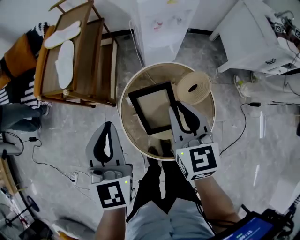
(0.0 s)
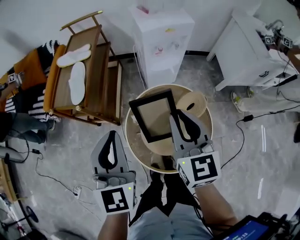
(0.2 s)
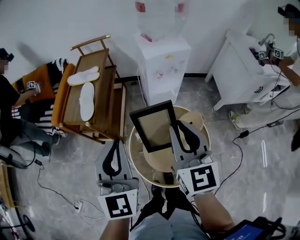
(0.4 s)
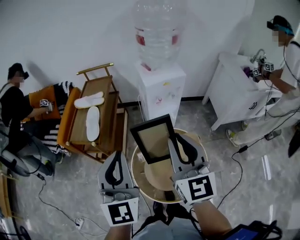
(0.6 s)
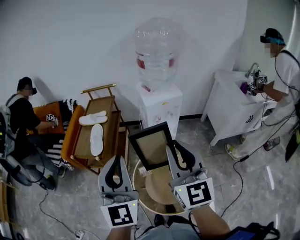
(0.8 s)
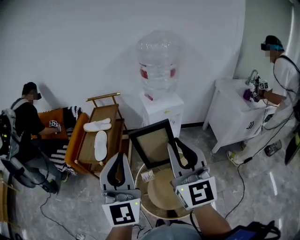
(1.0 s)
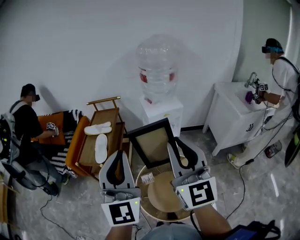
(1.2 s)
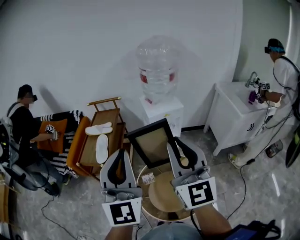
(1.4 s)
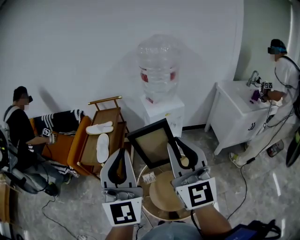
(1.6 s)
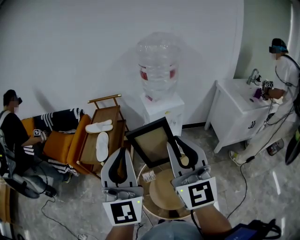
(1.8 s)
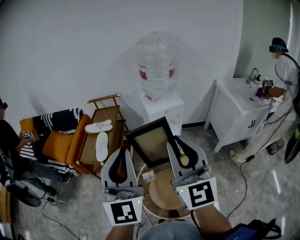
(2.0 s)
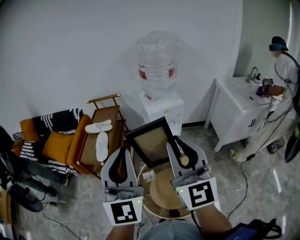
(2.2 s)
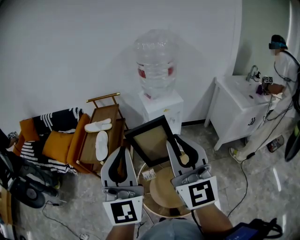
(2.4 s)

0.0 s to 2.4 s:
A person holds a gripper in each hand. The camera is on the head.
0.0 to 1.2 s: The grippers both shift upward by about 35 cm. The left gripper angles its fingers upward, by approximately 30 degrees; the right gripper angles its fingers upward, by roughly 40 degrees.
1.2 to 2.4 s: The grippers make only small movements.

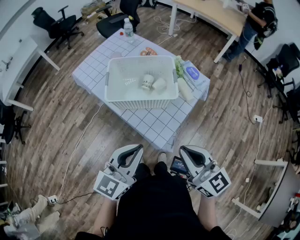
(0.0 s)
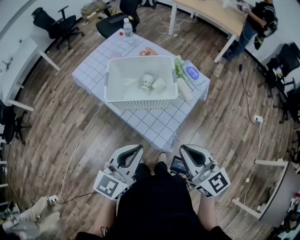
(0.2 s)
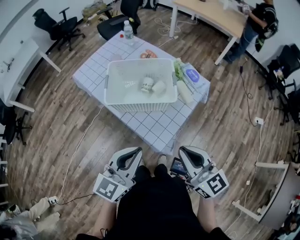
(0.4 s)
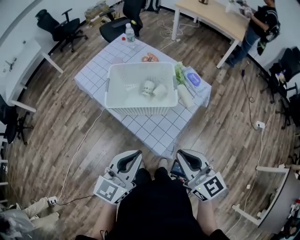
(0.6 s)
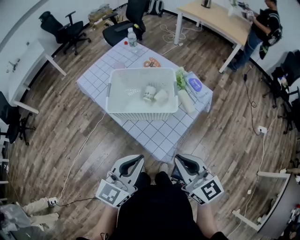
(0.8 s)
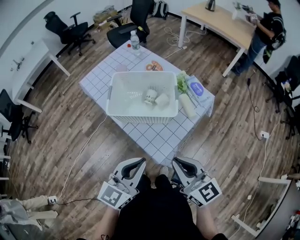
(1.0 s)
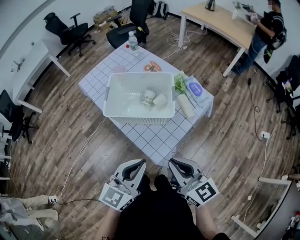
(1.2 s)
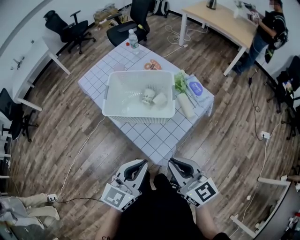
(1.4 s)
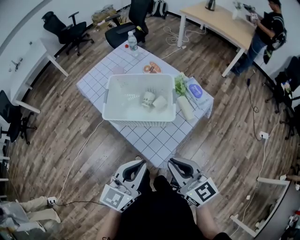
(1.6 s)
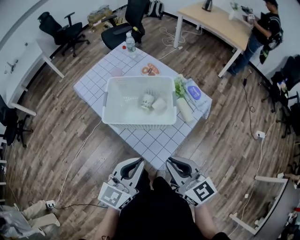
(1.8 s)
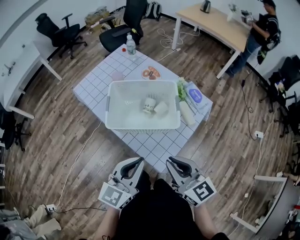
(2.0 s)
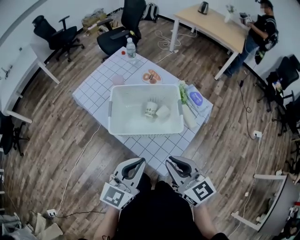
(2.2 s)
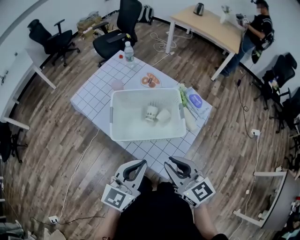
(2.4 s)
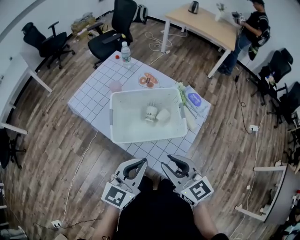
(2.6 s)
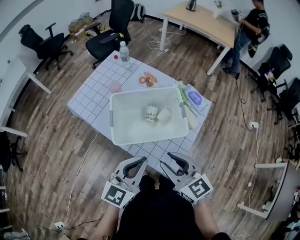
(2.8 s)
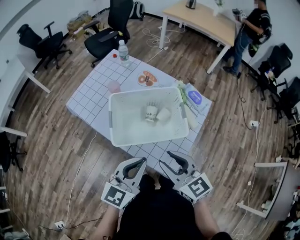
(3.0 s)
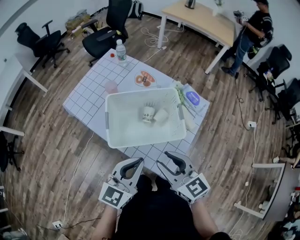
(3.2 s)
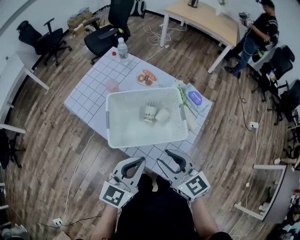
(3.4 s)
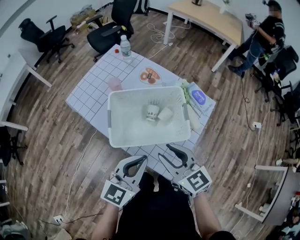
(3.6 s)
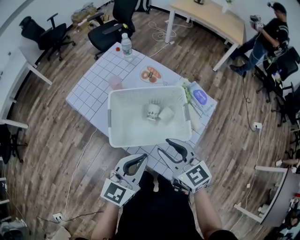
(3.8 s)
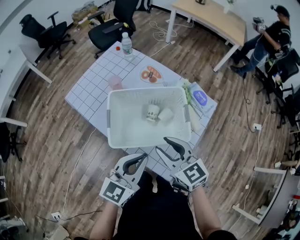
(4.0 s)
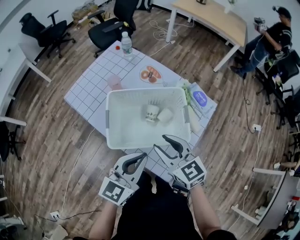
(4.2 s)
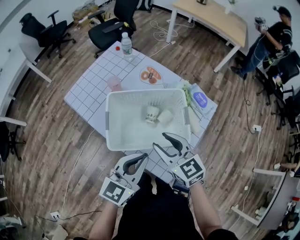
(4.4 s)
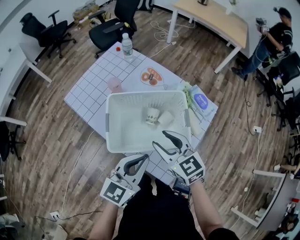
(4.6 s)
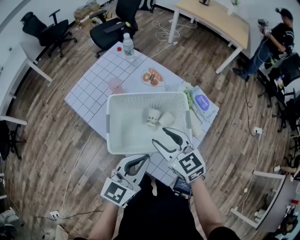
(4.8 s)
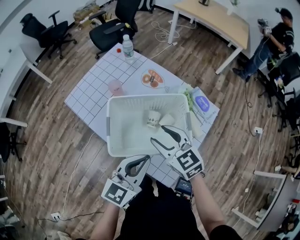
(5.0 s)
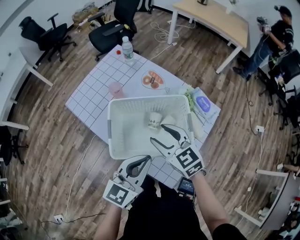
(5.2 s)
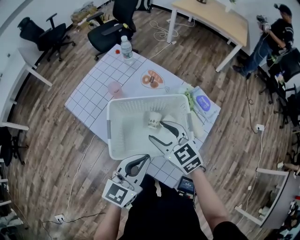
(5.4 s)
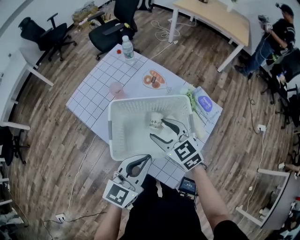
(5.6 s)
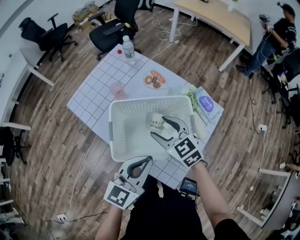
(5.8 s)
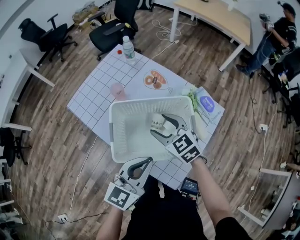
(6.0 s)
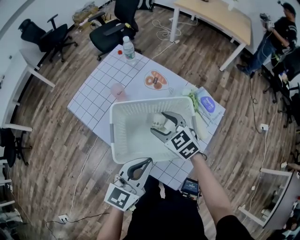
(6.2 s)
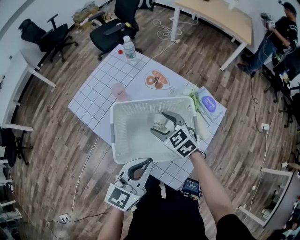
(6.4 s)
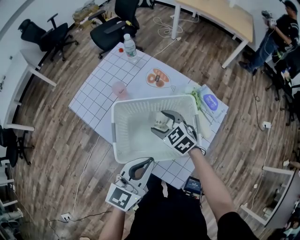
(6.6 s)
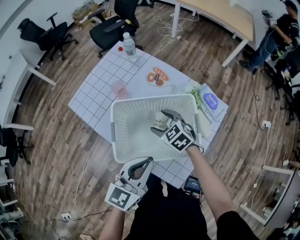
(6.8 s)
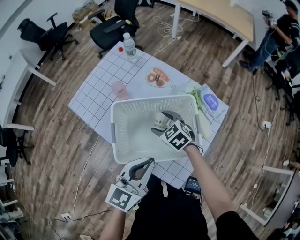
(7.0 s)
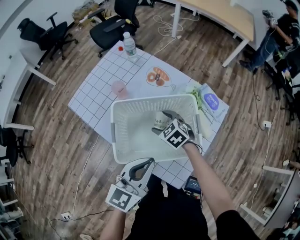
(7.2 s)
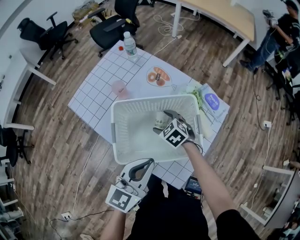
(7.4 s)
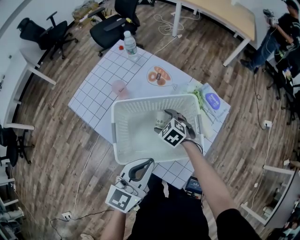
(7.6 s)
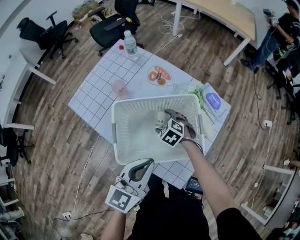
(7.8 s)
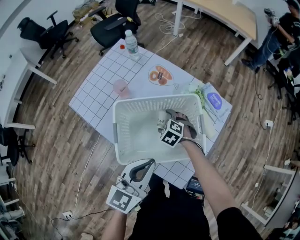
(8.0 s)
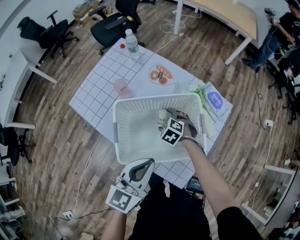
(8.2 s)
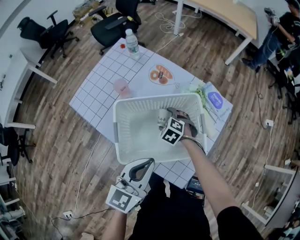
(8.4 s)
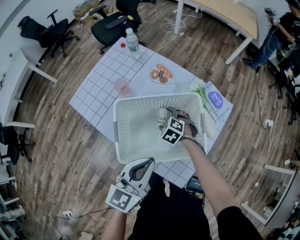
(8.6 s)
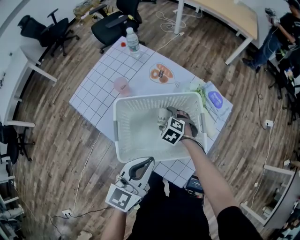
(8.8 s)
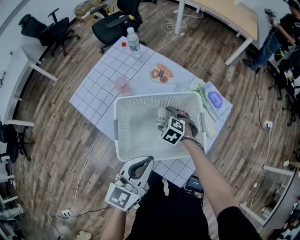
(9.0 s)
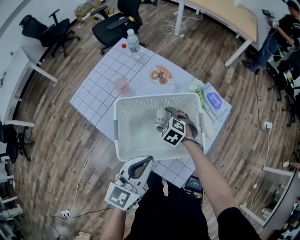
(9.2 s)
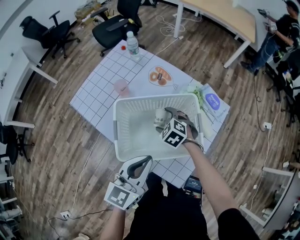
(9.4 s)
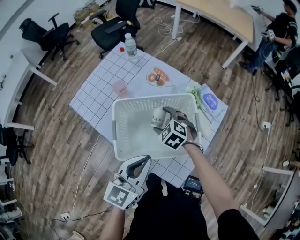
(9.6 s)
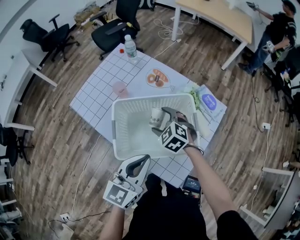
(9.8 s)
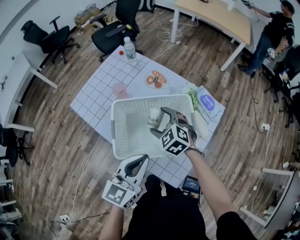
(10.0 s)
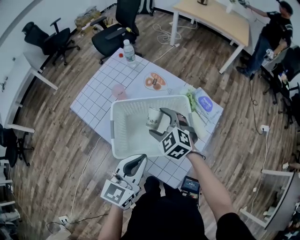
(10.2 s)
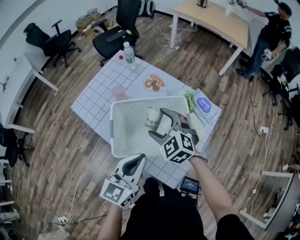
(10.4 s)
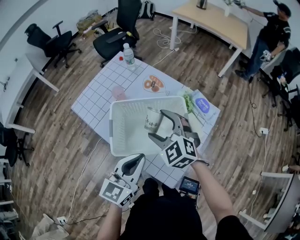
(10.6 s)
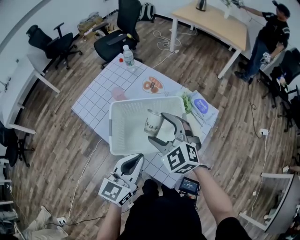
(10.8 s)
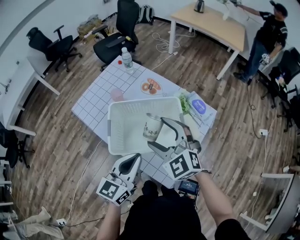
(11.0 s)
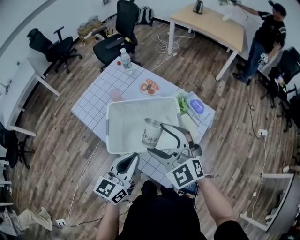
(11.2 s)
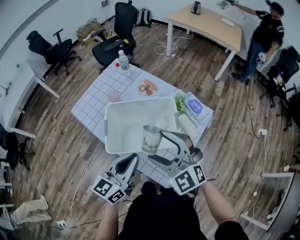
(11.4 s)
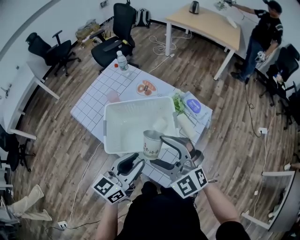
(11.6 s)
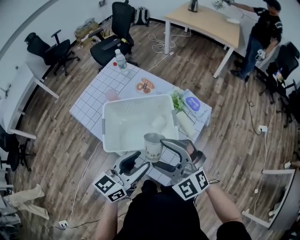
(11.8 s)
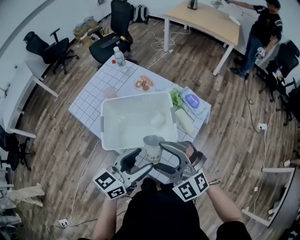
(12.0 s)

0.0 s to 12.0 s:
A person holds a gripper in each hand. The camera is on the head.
0.0 to 1.6 s: The left gripper changes place by roughly 5 cm; the right gripper ends up about 5 cm from where it was.
1.6 to 3.0 s: The left gripper heads forward and to the left, covering roughly 15 cm. Meanwhile the right gripper is displaced to the left and forward by roughly 15 cm.
3.0 to 4.4 s: The left gripper moves about 5 cm, while the right gripper is displaced forward by about 10 cm.
4.4 to 6.0 s: The right gripper shifts roughly 10 cm forward.
6.0 to 7.6 s: The right gripper moves downward, some 15 cm, and changes its angle by about 30 degrees.
7.6 to 9.0 s: The grippers stay close to where they were, moving slightly.
9.0 to 10.4 s: The right gripper moves upward, roughly 20 cm, and turns by approximately 30 degrees.
10.4 to 12.0 s: The right gripper travels backward by some 20 cm, and swivels about 30 degrees, while the left gripper heads to the right, covering about 5 cm, and opens its fingers.

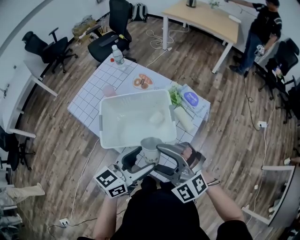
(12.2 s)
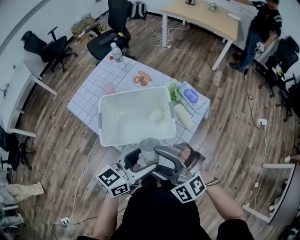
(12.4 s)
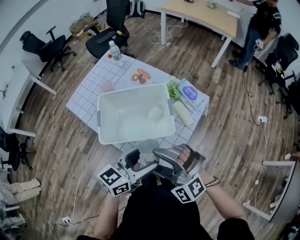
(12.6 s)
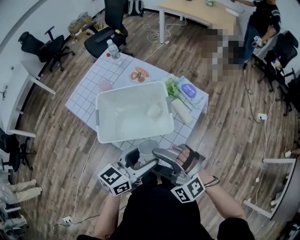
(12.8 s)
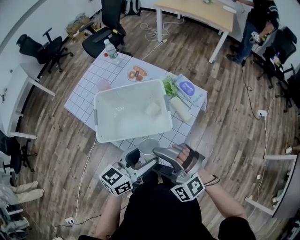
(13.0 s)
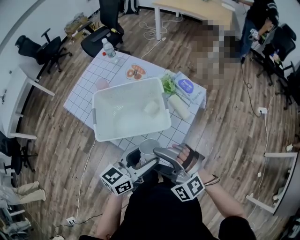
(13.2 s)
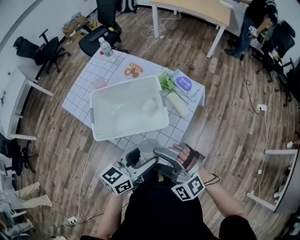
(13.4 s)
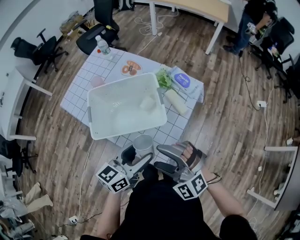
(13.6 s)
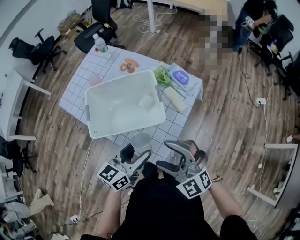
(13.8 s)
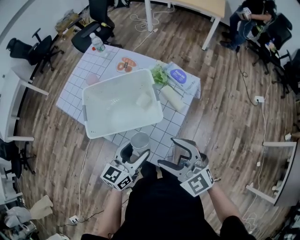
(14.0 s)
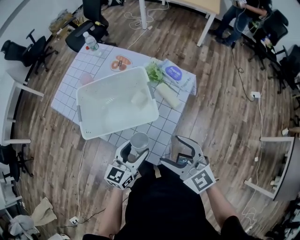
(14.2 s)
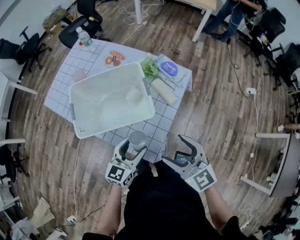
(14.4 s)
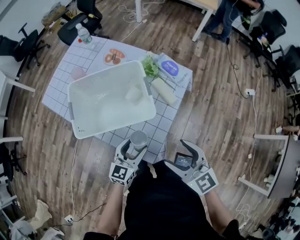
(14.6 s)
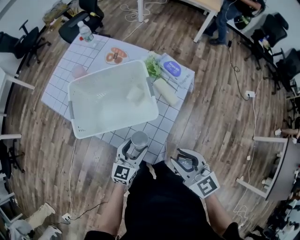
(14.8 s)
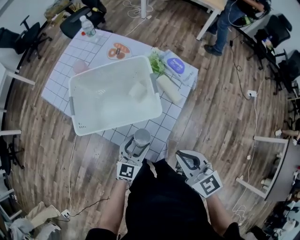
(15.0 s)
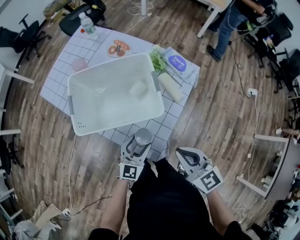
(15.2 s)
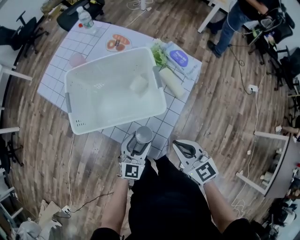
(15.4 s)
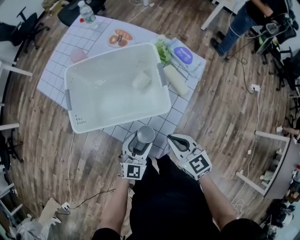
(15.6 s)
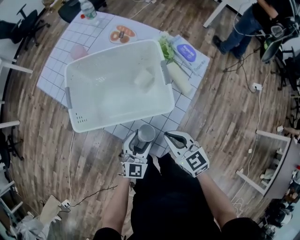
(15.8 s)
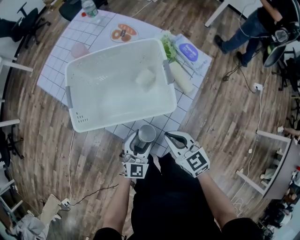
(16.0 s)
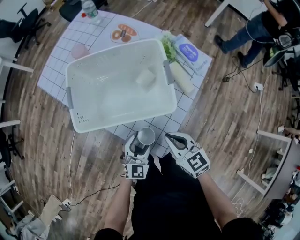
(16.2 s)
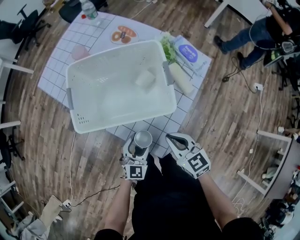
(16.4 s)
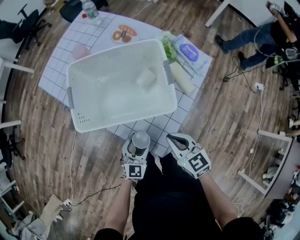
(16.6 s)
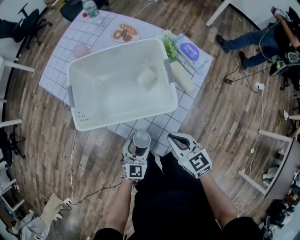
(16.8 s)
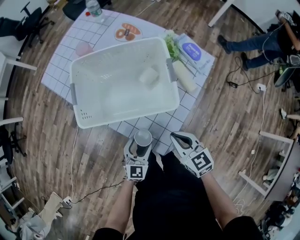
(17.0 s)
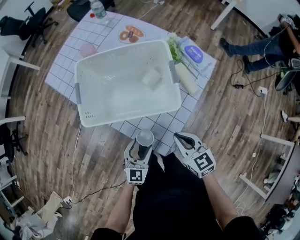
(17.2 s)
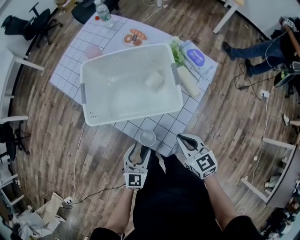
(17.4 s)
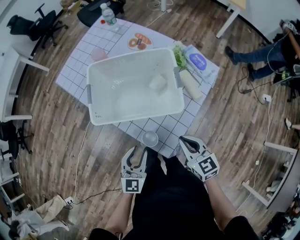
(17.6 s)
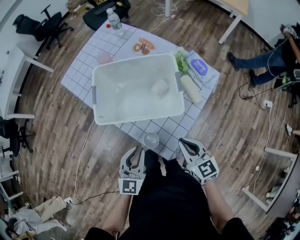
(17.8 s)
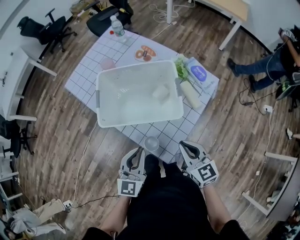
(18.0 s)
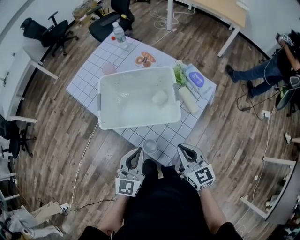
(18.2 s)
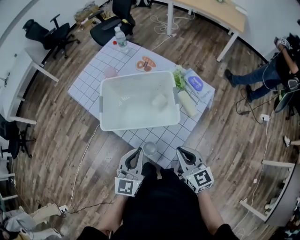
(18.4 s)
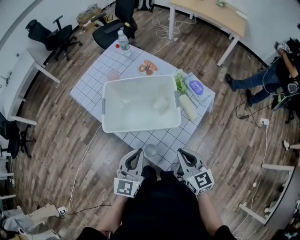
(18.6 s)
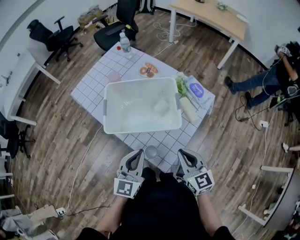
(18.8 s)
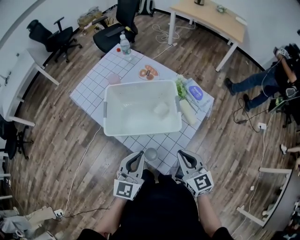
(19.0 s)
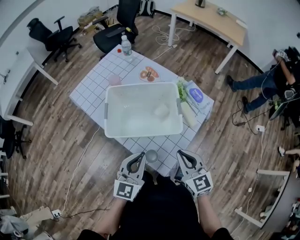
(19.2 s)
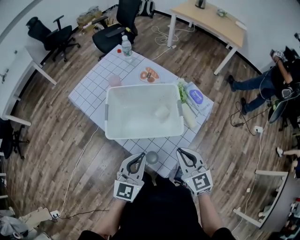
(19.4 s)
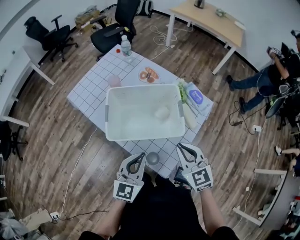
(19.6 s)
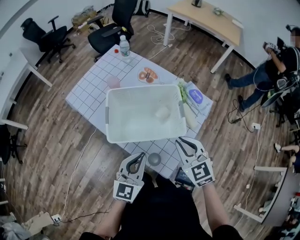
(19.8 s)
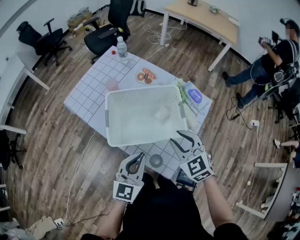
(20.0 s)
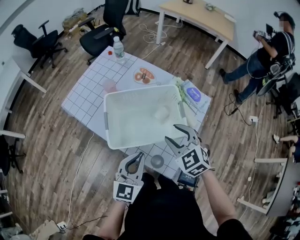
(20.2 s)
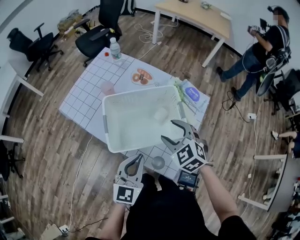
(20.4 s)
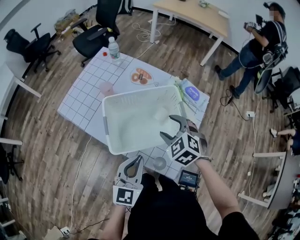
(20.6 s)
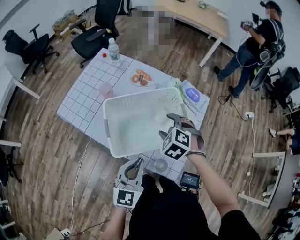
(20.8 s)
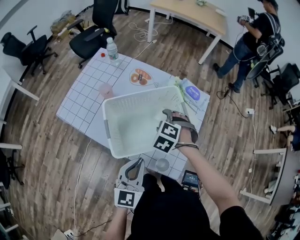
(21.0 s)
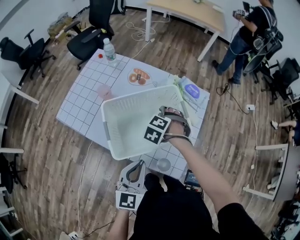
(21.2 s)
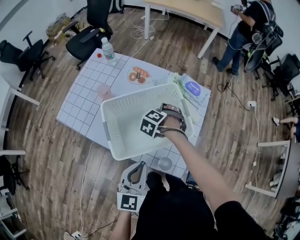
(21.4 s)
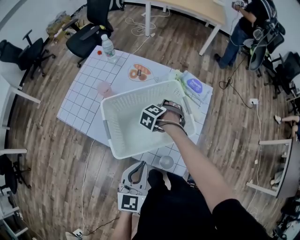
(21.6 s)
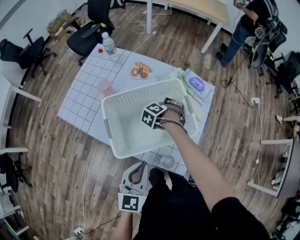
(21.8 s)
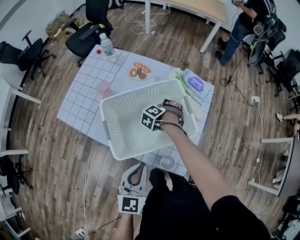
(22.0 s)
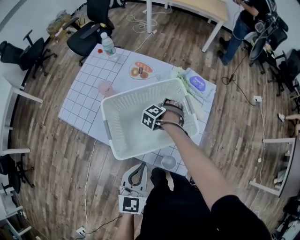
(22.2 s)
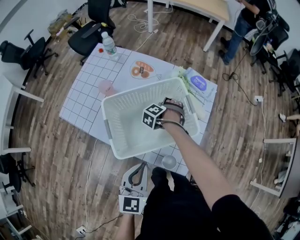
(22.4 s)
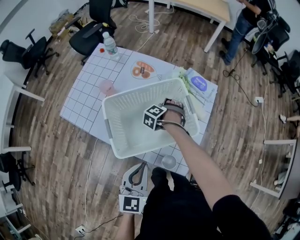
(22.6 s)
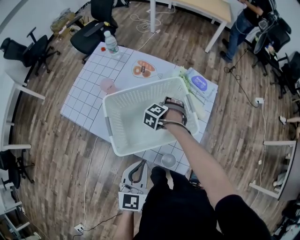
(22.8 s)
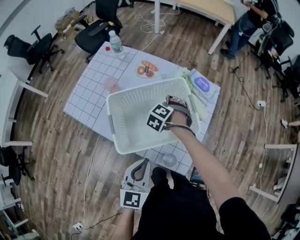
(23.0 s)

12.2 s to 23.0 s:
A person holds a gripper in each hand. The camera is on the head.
12.2 to 13.8 s: The right gripper shifts about 5 cm to the right. Meanwhile the left gripper is displaced downward by about 5 cm.
13.8 to 15.2 s: The left gripper goes some 15 cm downward, and swivels about 30 degrees; the right gripper moves to the right and downward, roughly 10 cm, rotates around the line of its fingers by some 40 degrees, clockwise from behind, and closes up.
15.2 to 16.8 s: The grippers both shift downward by approximately 10 cm.
16.8 to 18.4 s: The left gripper moves upward, roughly 20 cm, and closes up. The right gripper is displaced upward by roughly 10 cm.
18.4 to 20.0 s: The right gripper is displaced forward and to the left by some 10 cm, and rotates about 30 degrees. Meanwhile the left gripper changes place by approximately 5 cm.
20.0 to 21.4 s: The right gripper is displaced downward by some 15 cm, tips its fingers downward by some 40 degrees, and opens up.
